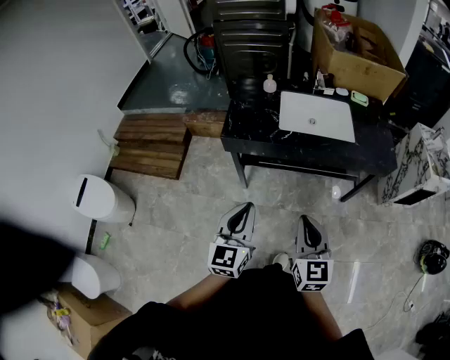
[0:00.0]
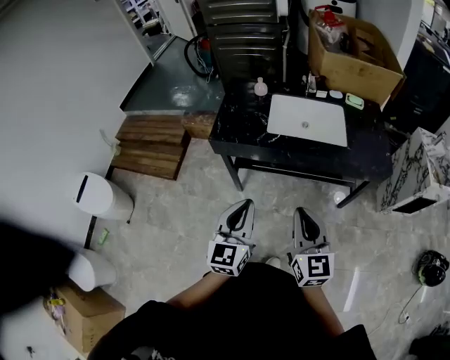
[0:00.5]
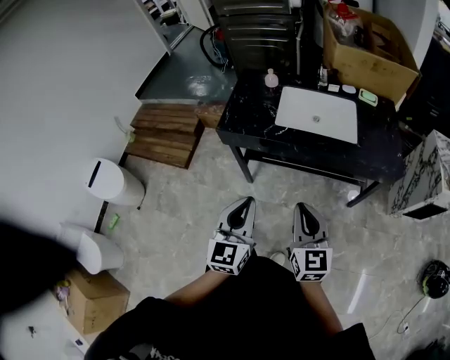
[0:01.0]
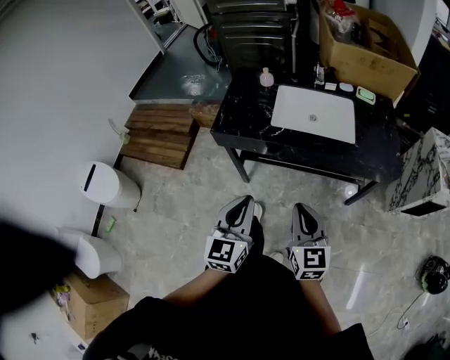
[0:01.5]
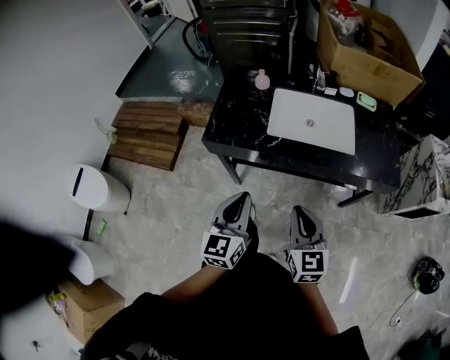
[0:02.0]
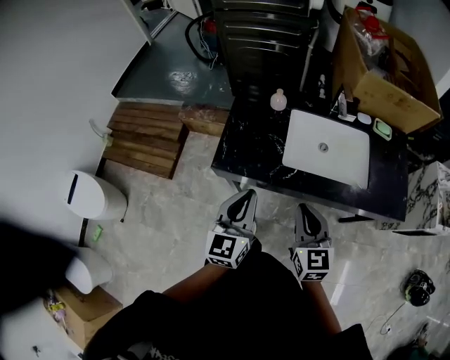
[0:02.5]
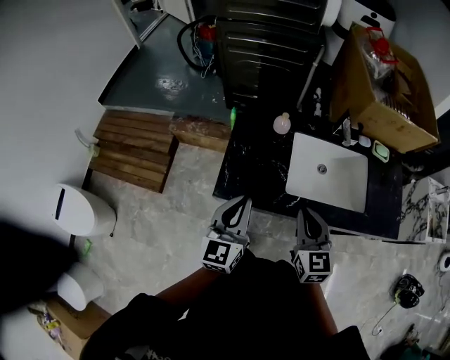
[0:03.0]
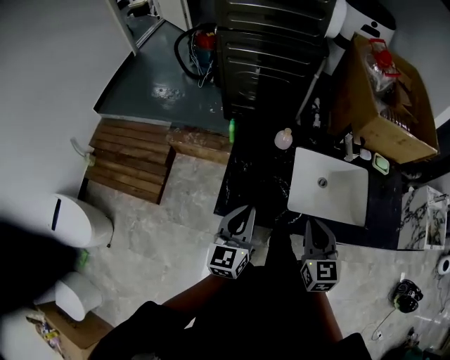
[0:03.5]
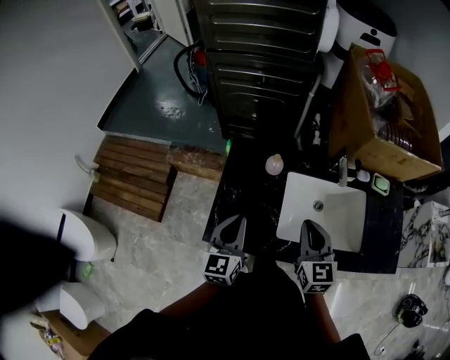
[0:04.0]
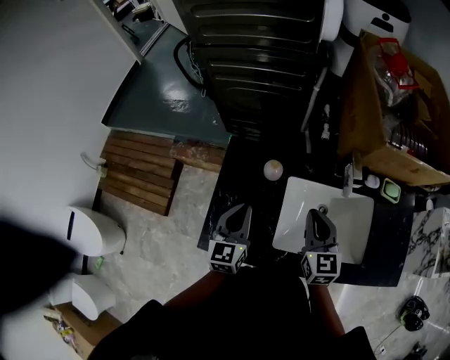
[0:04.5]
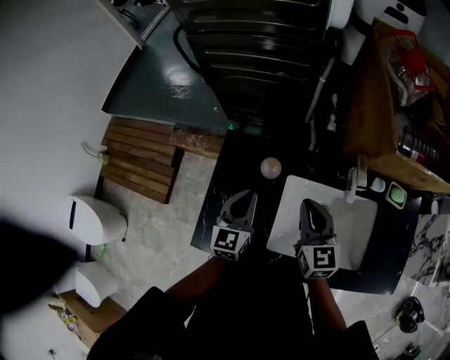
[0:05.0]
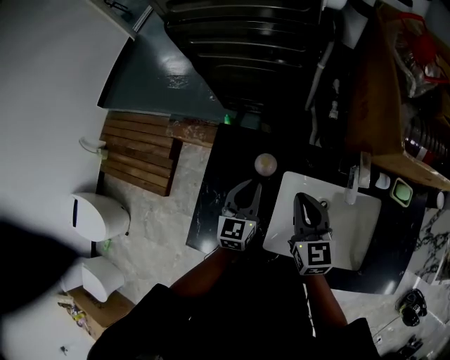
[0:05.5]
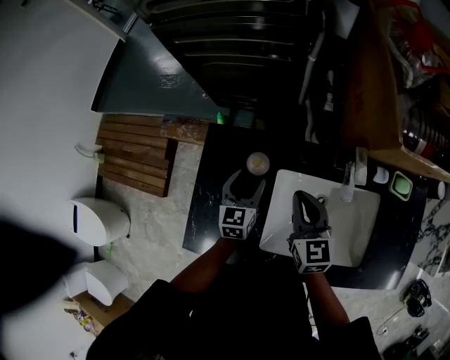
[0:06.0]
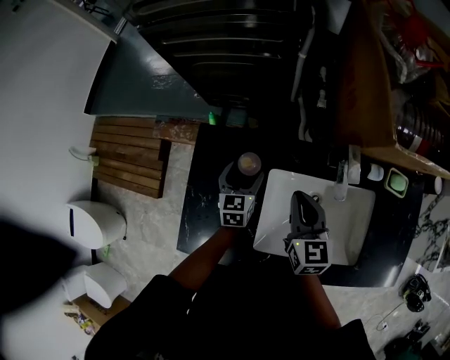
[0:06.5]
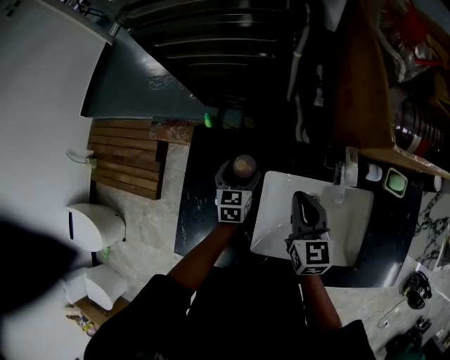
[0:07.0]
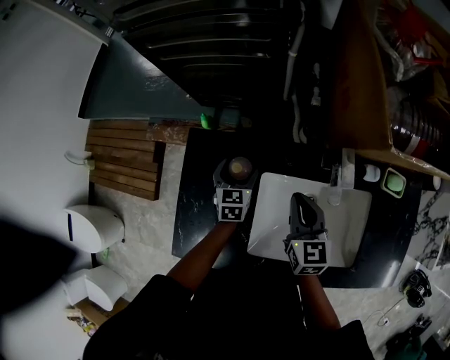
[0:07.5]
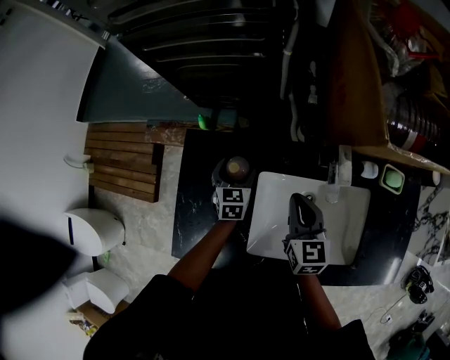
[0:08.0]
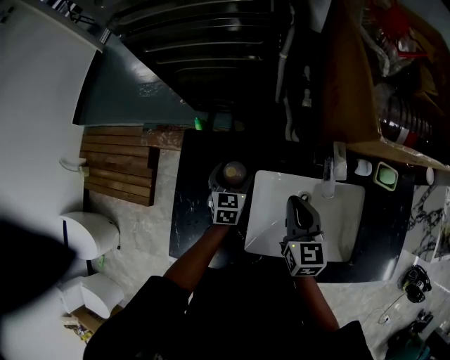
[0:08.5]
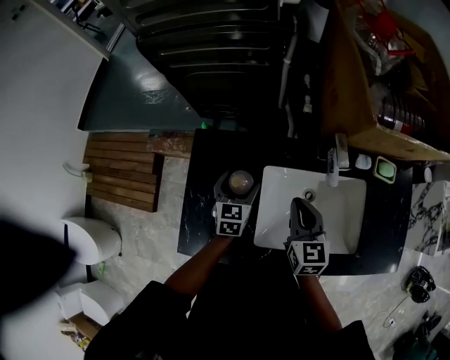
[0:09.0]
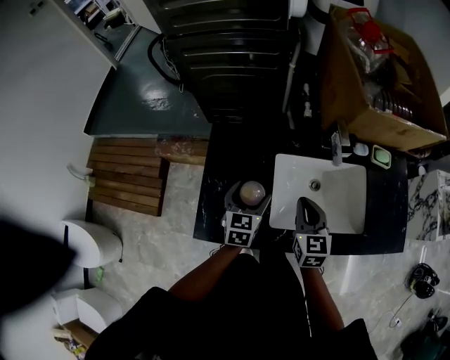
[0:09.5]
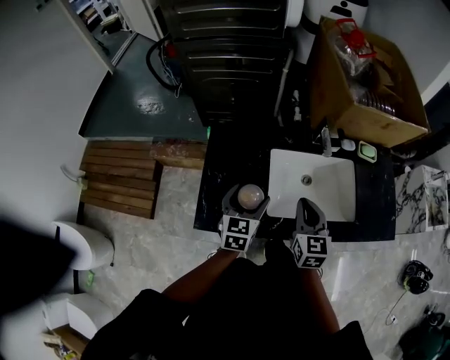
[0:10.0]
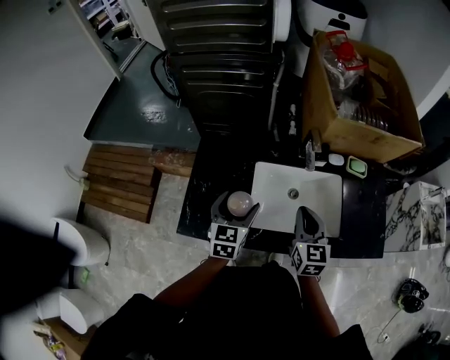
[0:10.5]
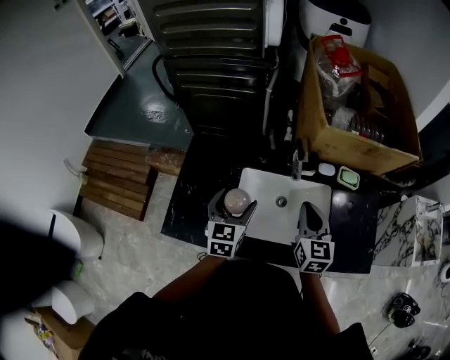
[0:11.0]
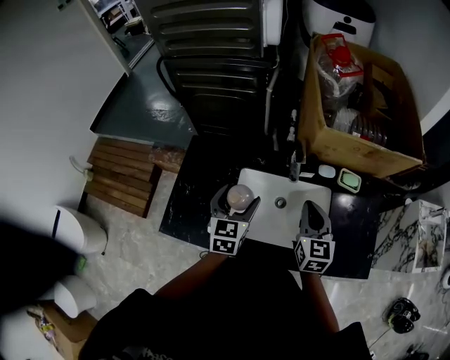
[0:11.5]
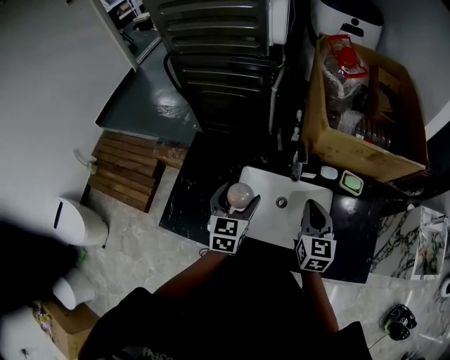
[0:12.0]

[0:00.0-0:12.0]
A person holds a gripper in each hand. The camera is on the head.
0:00.0 to 0:02.0: The two grippers go some 15 cm forward and to the right.
0:02.0 to 0:04.0: The two grippers go about 35 cm forward.
0:04.0 to 0:06.0: The right gripper travels forward and downward by about 20 cm. The left gripper goes about 30 cm forward, downward and to the right, and opens its fingers.
0:06.0 to 0:08.0: The right gripper goes some 5 cm to the right; the left gripper heads downward and forward, covering about 10 cm.
0:08.0 to 0:10.0: Both grippers travel together backward and upward, approximately 25 cm.
0:10.0 to 0:12.0: Both grippers move to the right and forward, roughly 15 cm.

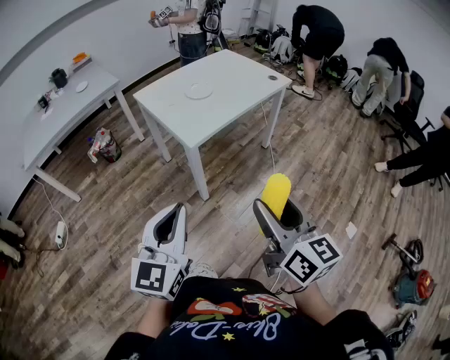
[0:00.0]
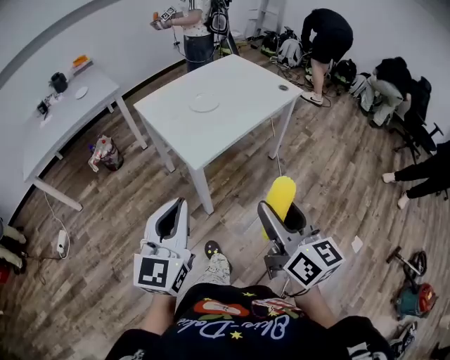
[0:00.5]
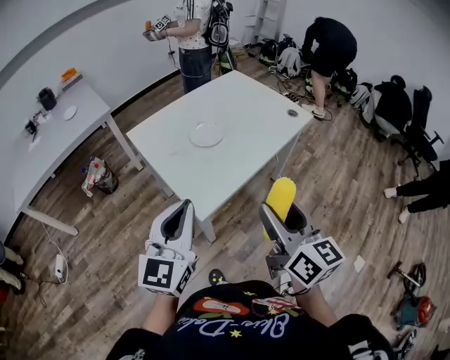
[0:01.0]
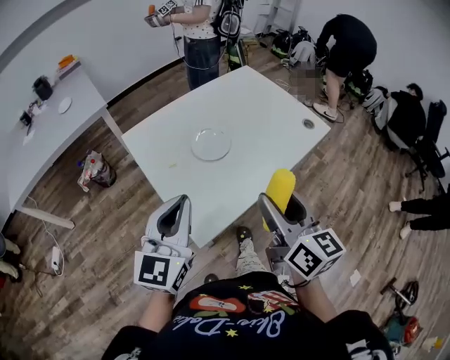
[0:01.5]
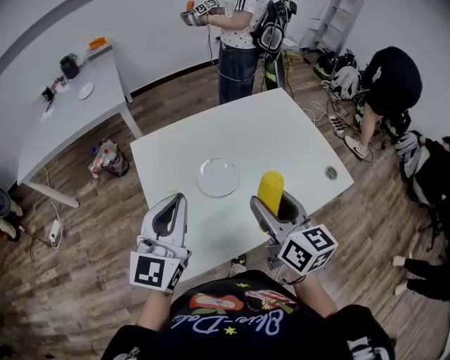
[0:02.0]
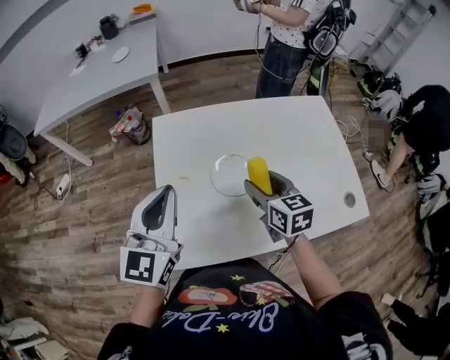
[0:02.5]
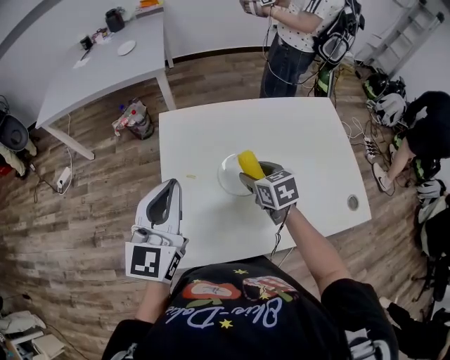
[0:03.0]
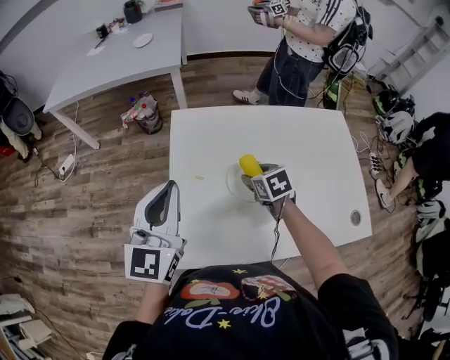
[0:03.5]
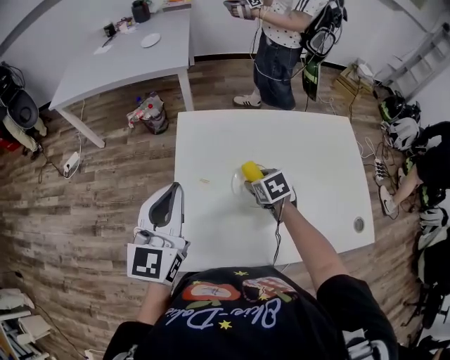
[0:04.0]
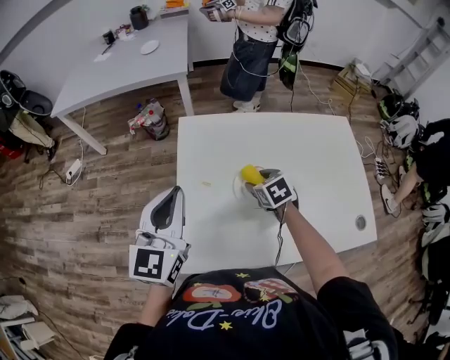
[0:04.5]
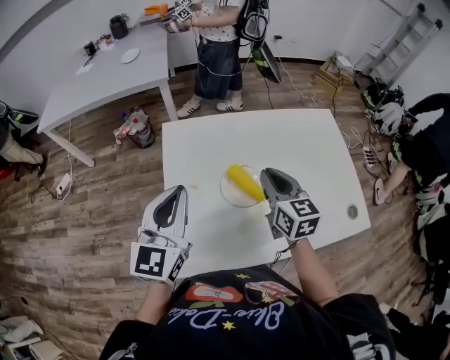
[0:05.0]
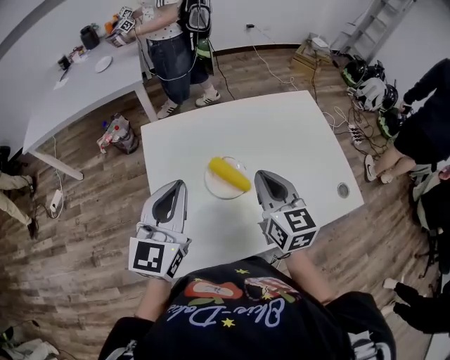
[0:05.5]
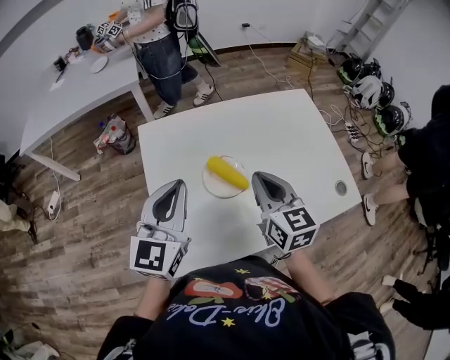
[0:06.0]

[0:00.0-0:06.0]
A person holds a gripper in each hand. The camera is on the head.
0:00.0 to 0:02.0: The two grippers travel together, forward, roughly 60 cm. The right gripper swivels about 20 degrees.
0:02.0 to 0:04.0: The left gripper moves some 10 cm, and rotates some 30 degrees. The right gripper travels downward by approximately 25 cm, and tips its fingers downward by roughly 50 degrees.
0:04.0 to 0:06.0: The right gripper goes some 20 cm upward and backward, tilts its fingers some 40 degrees upward, and closes up, while the left gripper shifts some 10 cm to the right.

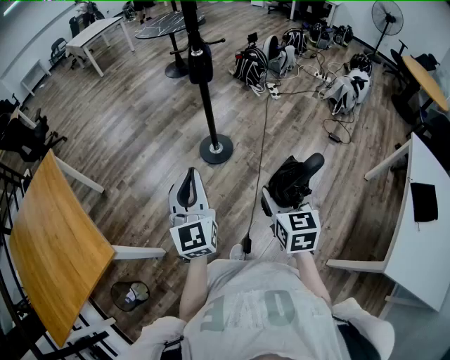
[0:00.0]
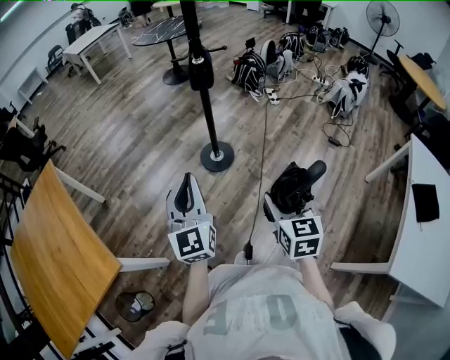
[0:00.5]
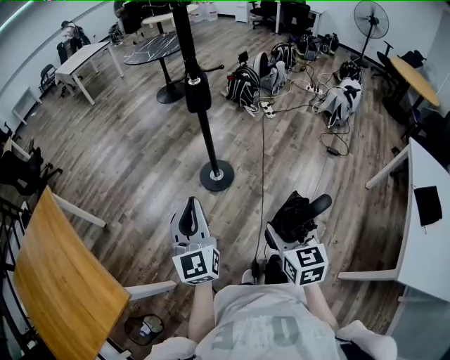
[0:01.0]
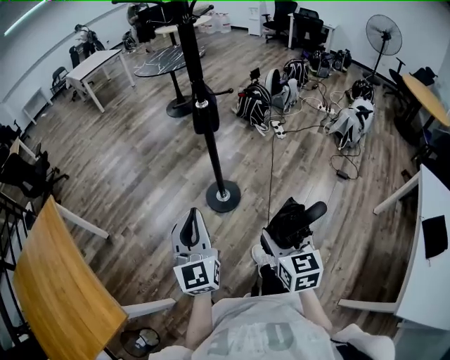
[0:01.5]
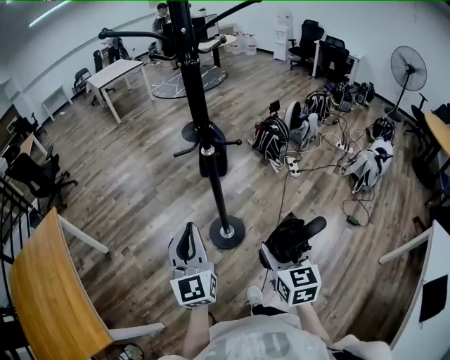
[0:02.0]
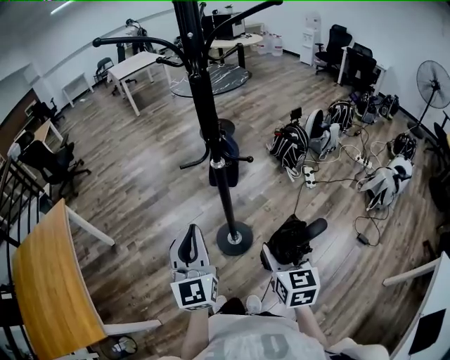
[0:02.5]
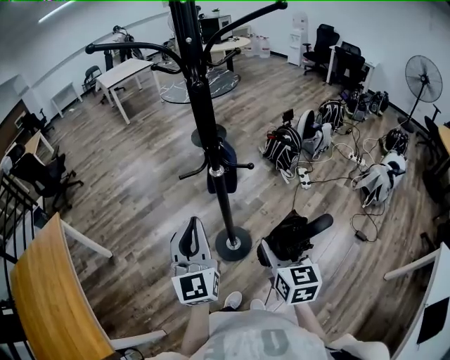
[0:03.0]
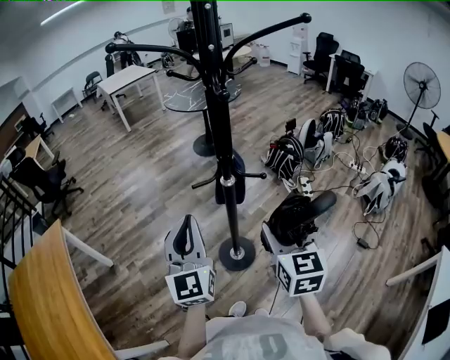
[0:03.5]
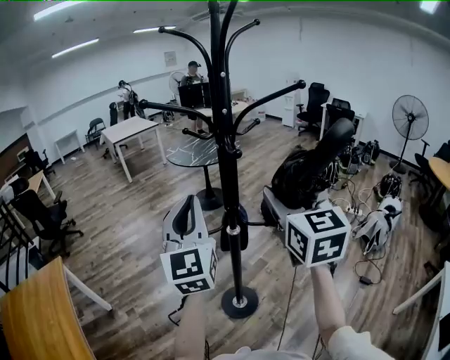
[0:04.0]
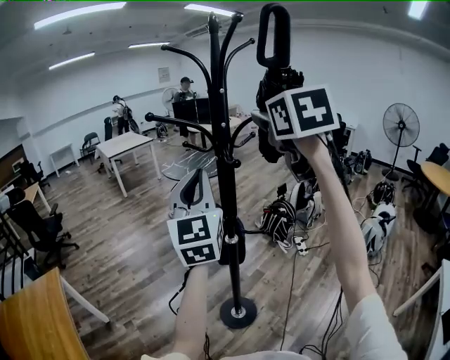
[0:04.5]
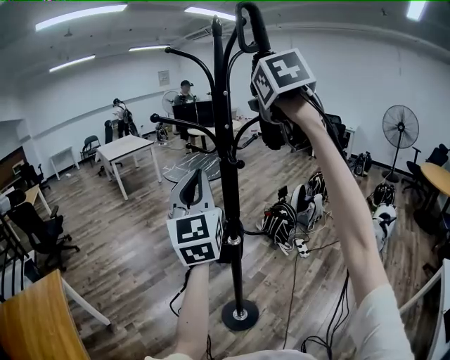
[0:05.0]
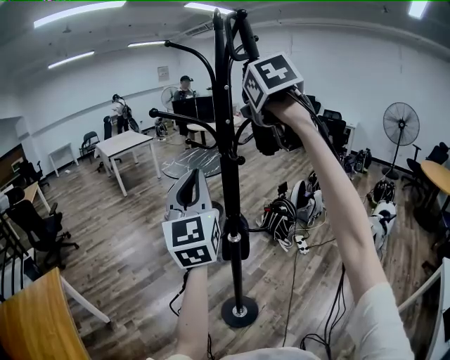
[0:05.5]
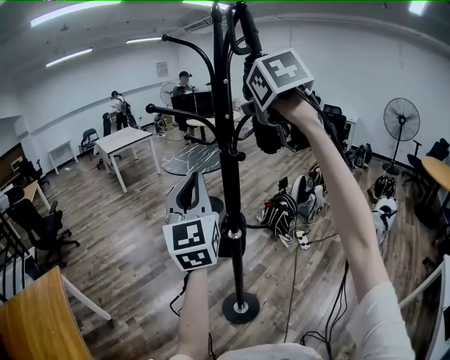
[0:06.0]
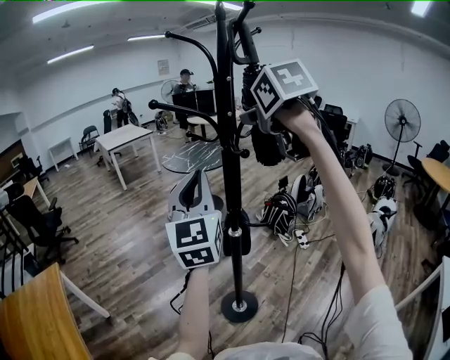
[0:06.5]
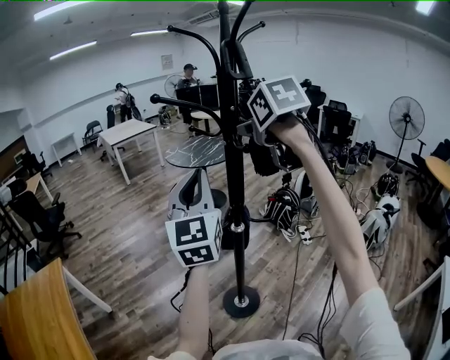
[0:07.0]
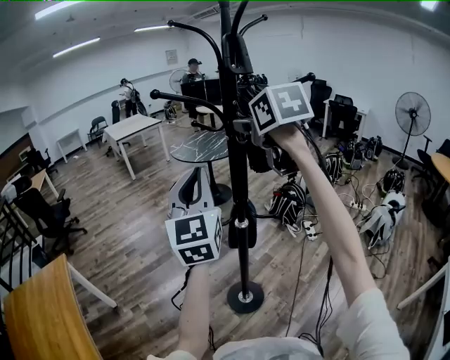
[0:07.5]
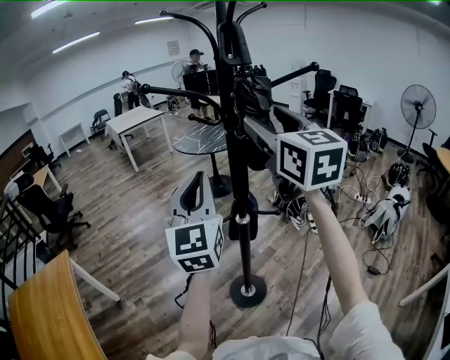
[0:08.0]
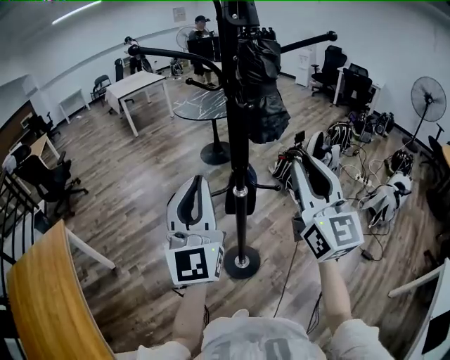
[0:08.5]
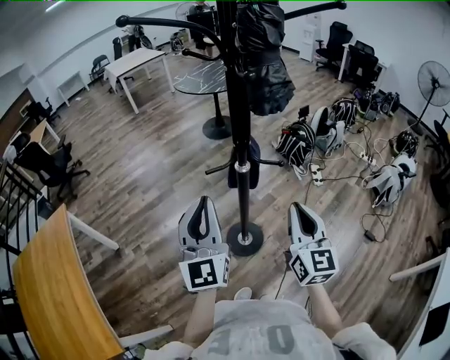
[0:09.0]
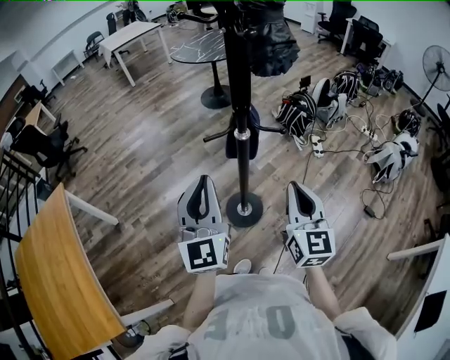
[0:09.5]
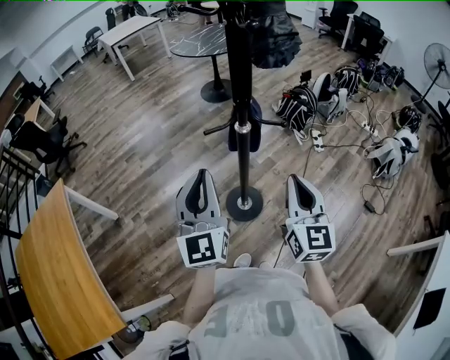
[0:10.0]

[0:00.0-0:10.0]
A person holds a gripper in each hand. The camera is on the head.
0:00.0 to 0:02.0: The grippers both shift forward by about 30 cm.
0:02.0 to 0:04.0: Both grippers move upward and forward, roughly 35 cm. The right gripper turns by approximately 30 degrees.
0:04.0 to 0:06.0: The right gripper travels upward and forward by some 20 cm, and swivels approximately 20 degrees.
0:06.0 to 0:08.0: The right gripper travels downward by about 5 cm, and points its fingers roughly 30 degrees further upward.
0:08.0 to 0:10.0: The left gripper goes about 20 cm downward and backward. Meanwhile the right gripper heads downward, covering some 35 cm, and closes.
